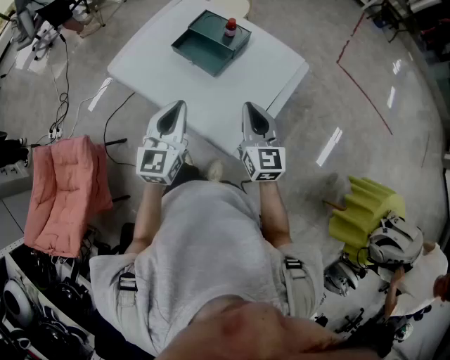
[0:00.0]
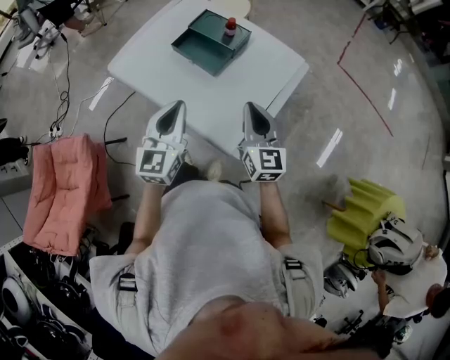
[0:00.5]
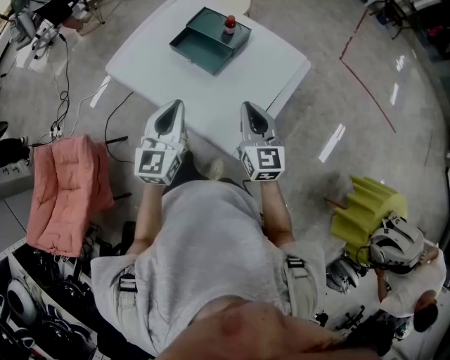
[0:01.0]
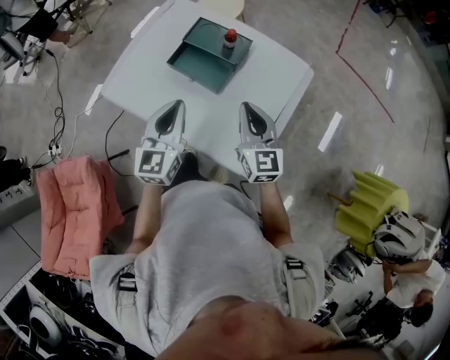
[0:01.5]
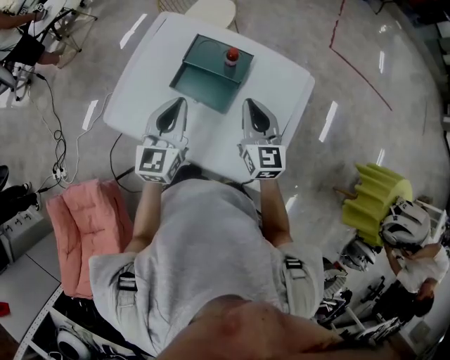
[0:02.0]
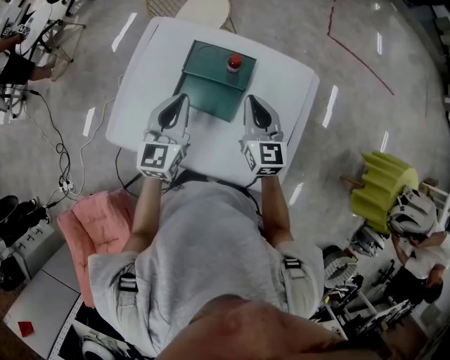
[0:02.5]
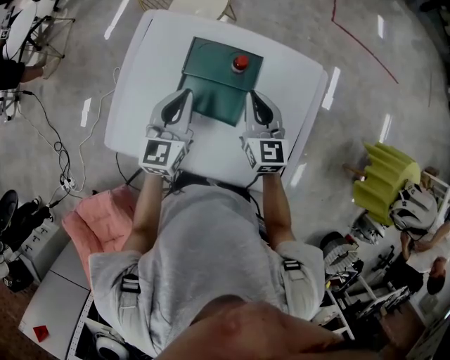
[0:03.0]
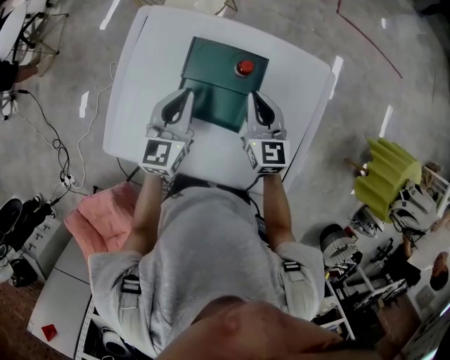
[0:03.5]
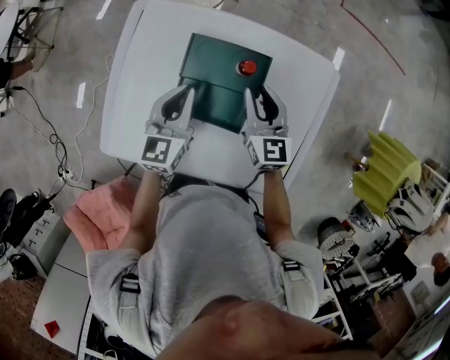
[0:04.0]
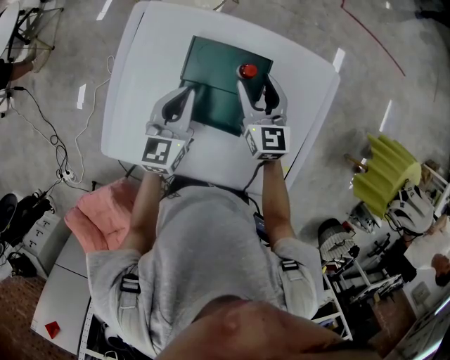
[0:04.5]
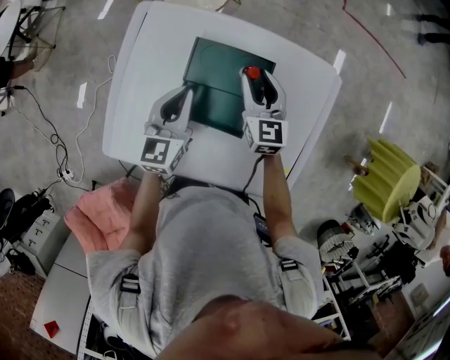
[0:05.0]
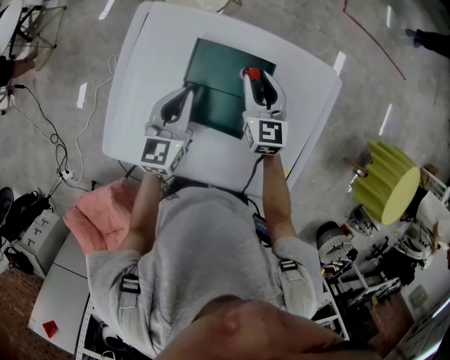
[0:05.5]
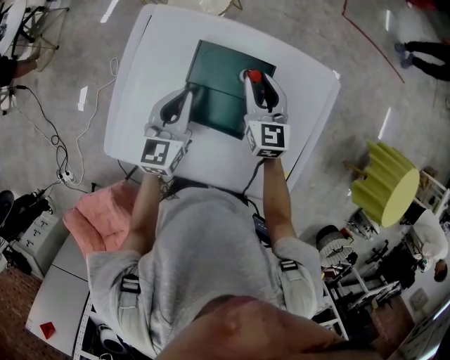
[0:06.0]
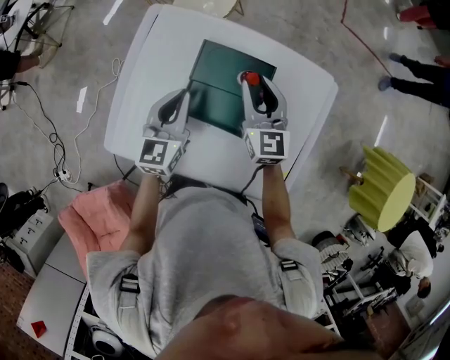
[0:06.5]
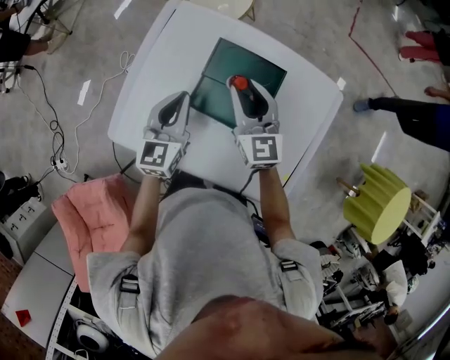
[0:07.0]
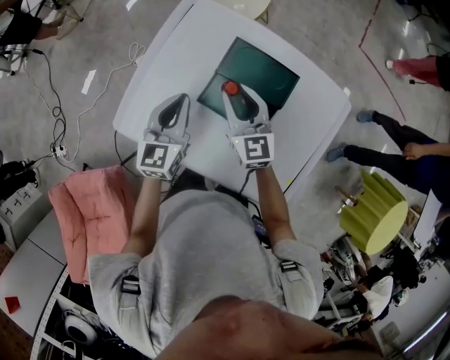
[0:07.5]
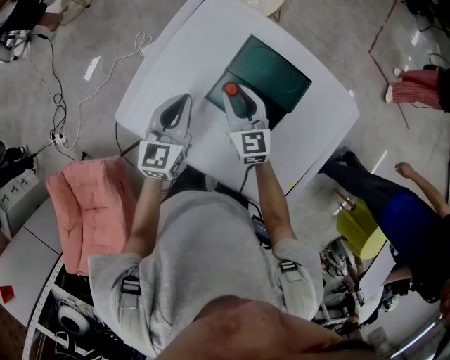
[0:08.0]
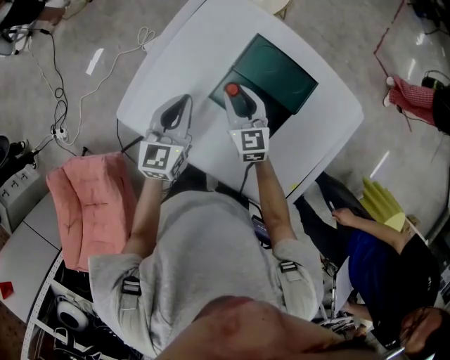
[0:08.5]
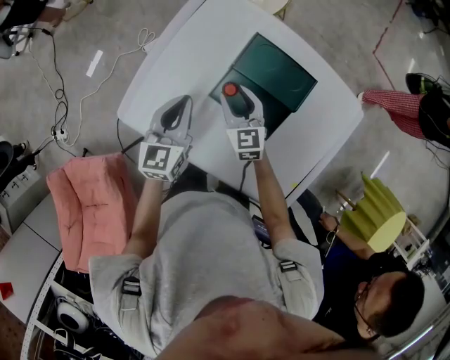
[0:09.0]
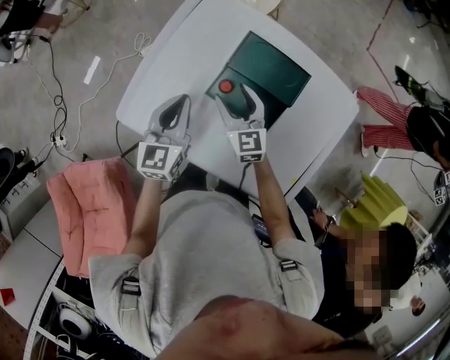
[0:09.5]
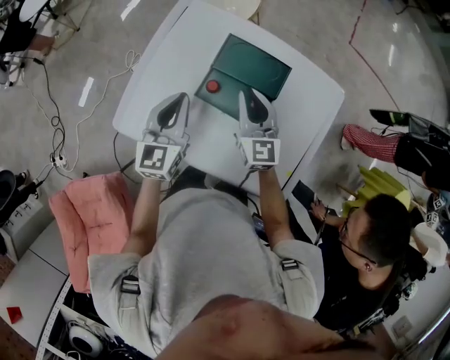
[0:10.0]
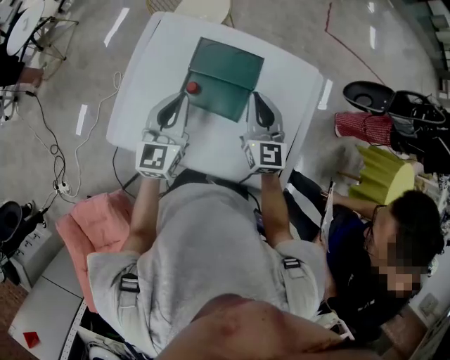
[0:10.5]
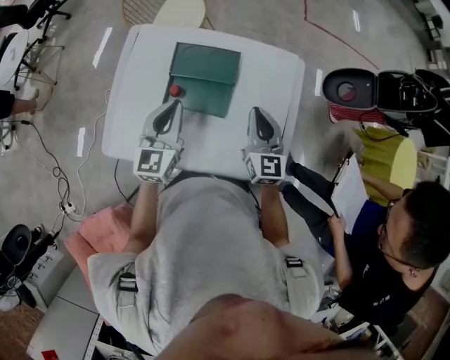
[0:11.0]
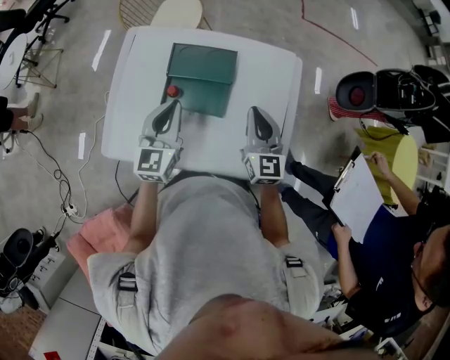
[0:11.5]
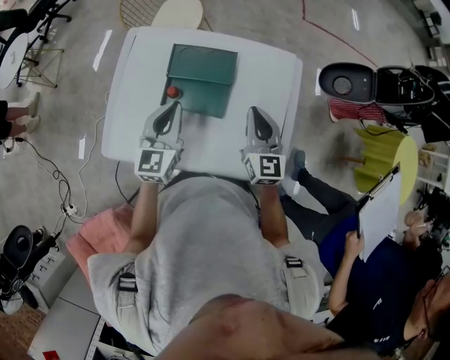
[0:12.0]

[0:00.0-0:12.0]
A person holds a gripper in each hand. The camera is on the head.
0:00.0 to 0:02.0: The two grippers go approximately 20 cm forward.
0:02.0 to 0:04.0: The grippers both shift forward and downward by some 20 cm. The right gripper opens its fingers.
0:04.0 to 0:06.0: The right gripper opens, then closes once more.
0:06.0 to 0:08.0: The two grippers go some 15 cm to the left and backward. The right gripper swivels about 30 degrees.
0:08.0 to 0:10.0: The right gripper is displaced upward and to the right by roughly 10 cm, and opens and closes again; the left gripper heads upward, covering approximately 5 cm.
0:10.0 to 0:12.0: The right gripper is displaced to the right and backward by approximately 20 cm. Meanwhile the left gripper is displaced to the right by approximately 10 cm.

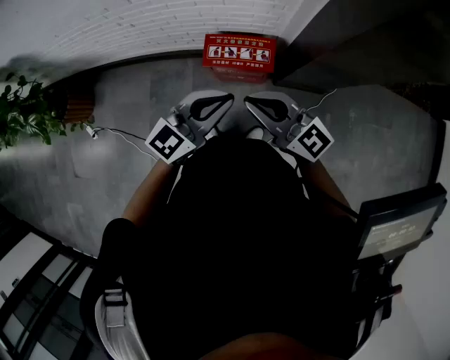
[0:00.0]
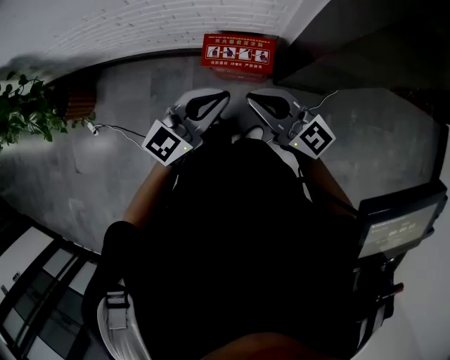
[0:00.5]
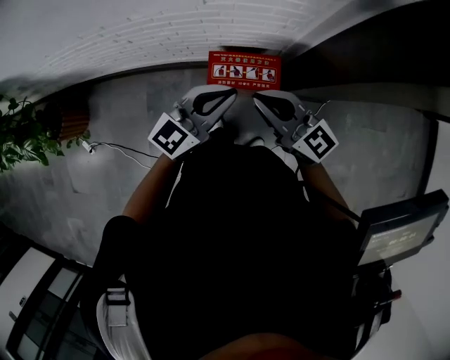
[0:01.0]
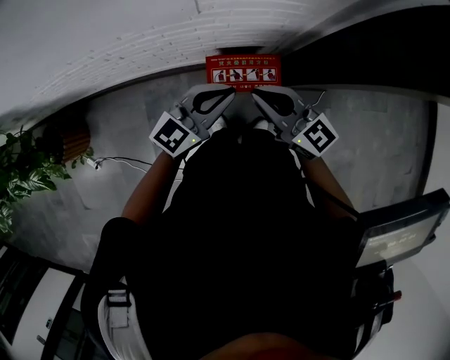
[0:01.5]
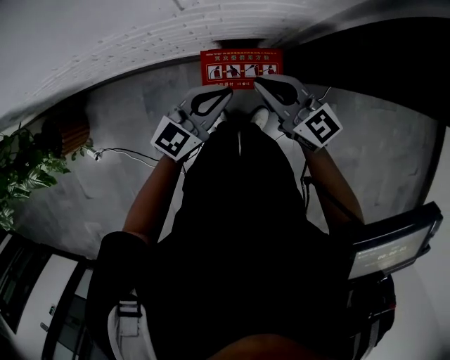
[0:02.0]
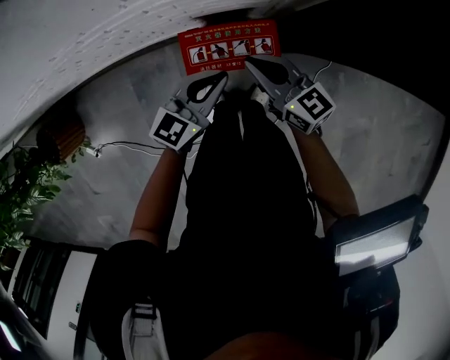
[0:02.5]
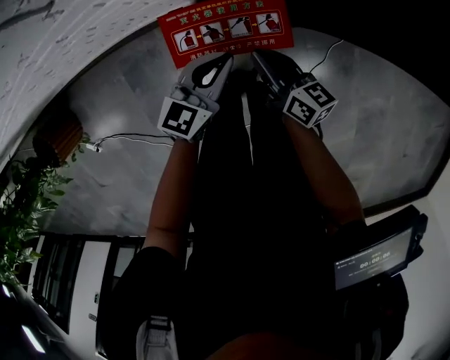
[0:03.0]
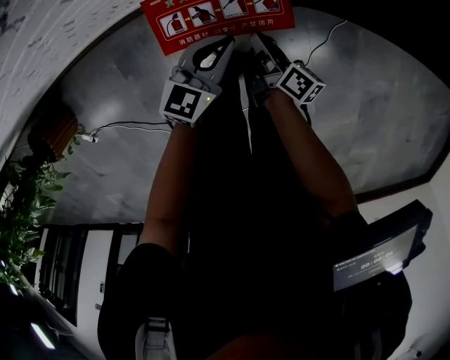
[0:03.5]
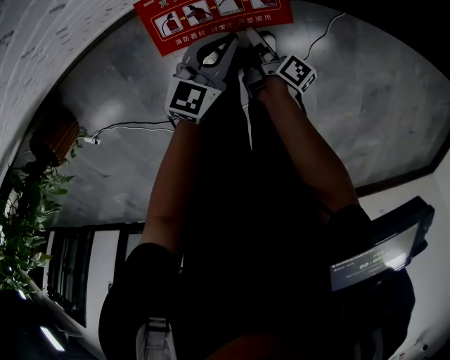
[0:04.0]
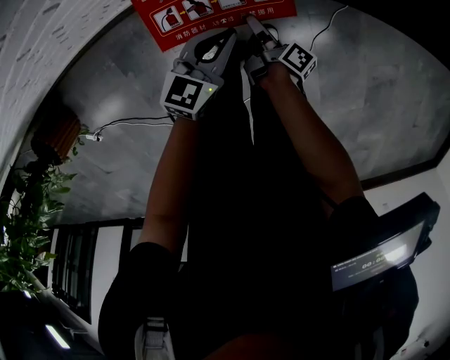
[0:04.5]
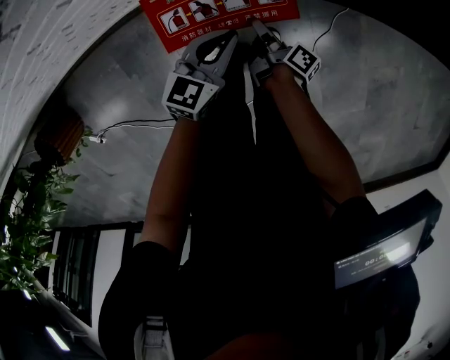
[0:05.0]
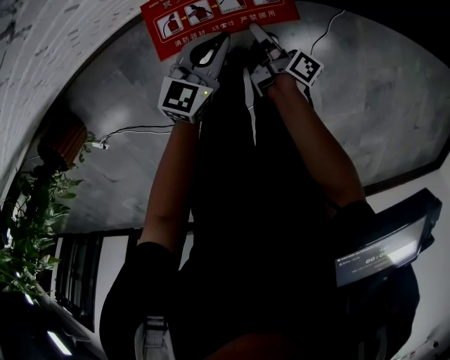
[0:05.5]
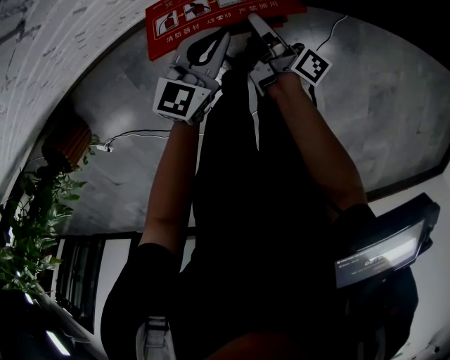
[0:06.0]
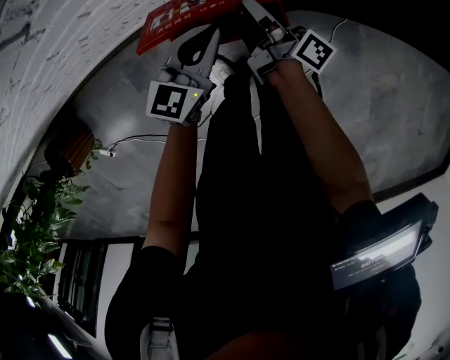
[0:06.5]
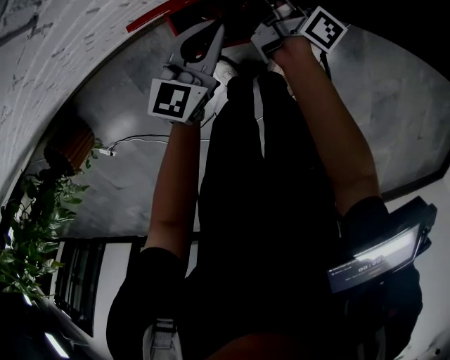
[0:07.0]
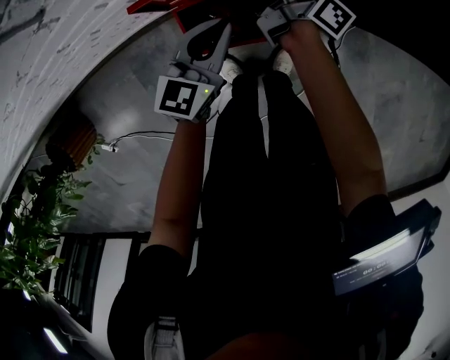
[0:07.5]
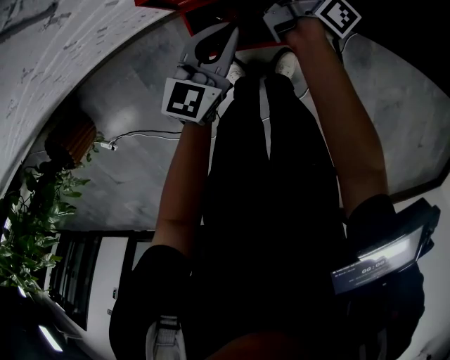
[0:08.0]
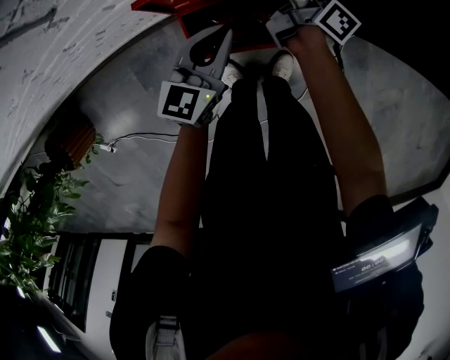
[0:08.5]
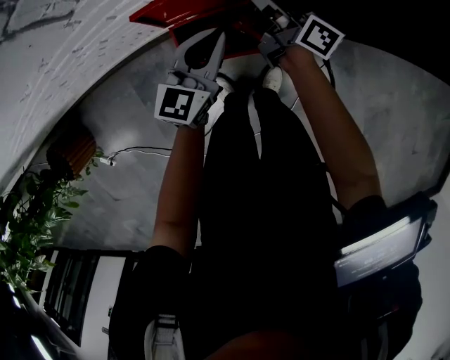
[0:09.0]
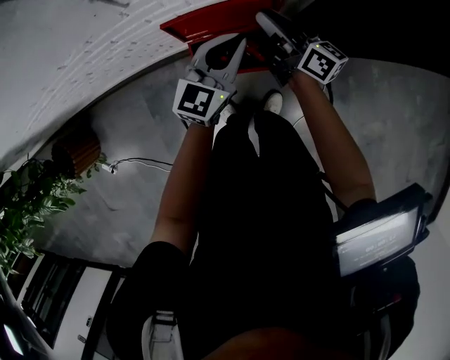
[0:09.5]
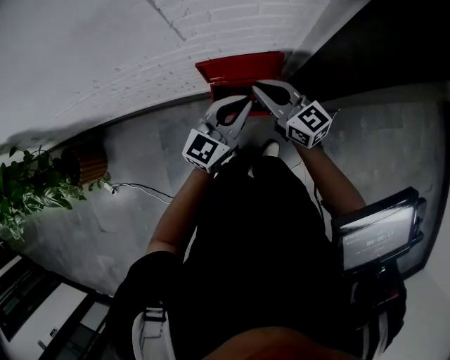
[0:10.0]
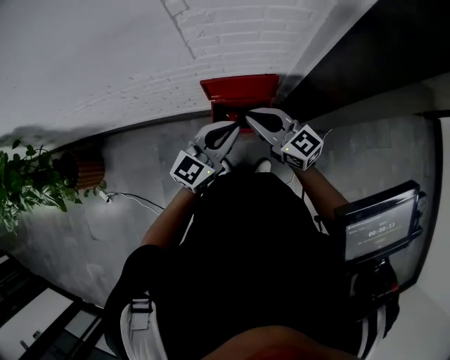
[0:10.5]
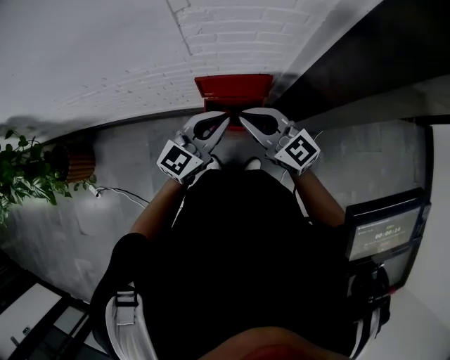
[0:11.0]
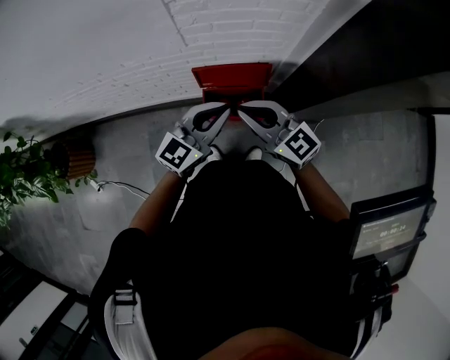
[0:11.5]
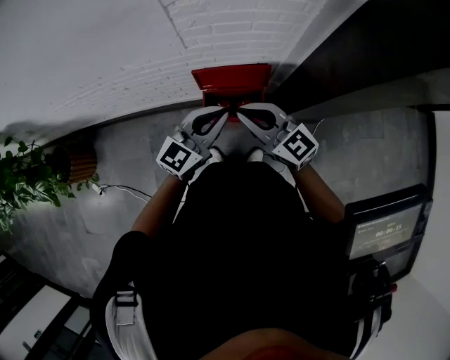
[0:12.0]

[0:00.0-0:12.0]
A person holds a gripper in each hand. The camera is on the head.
0:00.0 to 0:02.0: The grippers both shift forward and downward by some 25 cm.
0:02.0 to 0:04.0: Both grippers travel together downward, approximately 40 cm. The right gripper rotates around the line of its fingers by roughly 80 degrees, clockwise from behind, and opens up.
0:04.0 to 0:06.0: The right gripper goes about 15 cm upward and forward, while the left gripper goes some 5 cm upward.
0:06.0 to 0:08.0: The left gripper is displaced to the left by about 5 cm, while the right gripper heads forward, covering some 15 cm.
0:08.0 to 0:10.0: The right gripper is displaced upward and backward by roughly 35 cm, rotates around the line of its fingers by about 60 degrees, counterclockwise from behind, and closes. Meanwhile the left gripper is displaced upward by about 30 cm, and changes its angle by some 20 degrees.
0:10.0 to 0:12.0: The left gripper heads upward, covering roughly 5 cm. The right gripper is displaced upward and backward by roughly 15 cm.

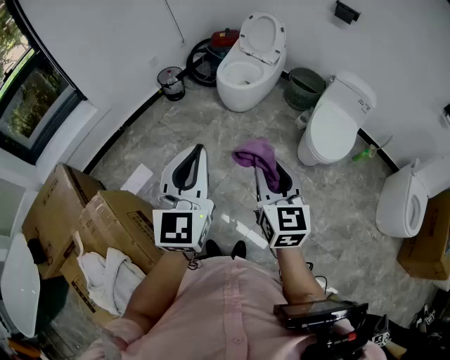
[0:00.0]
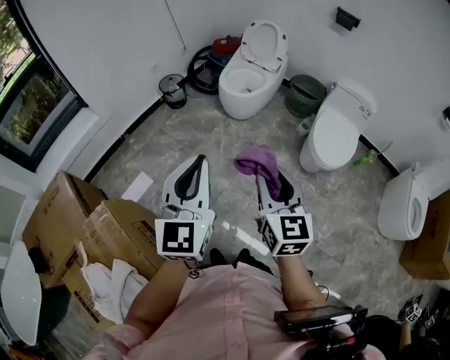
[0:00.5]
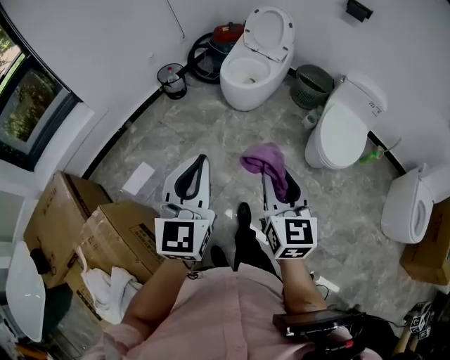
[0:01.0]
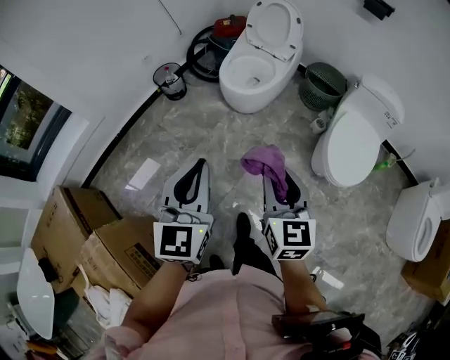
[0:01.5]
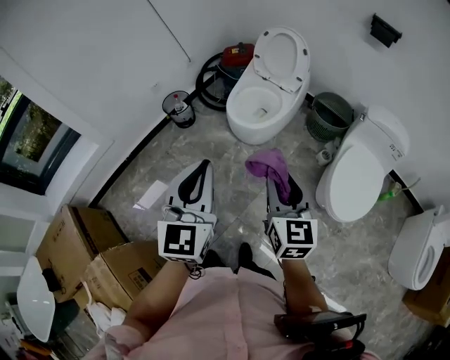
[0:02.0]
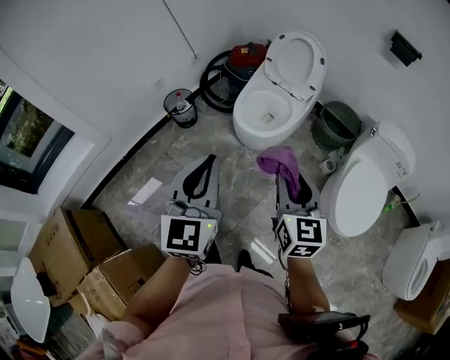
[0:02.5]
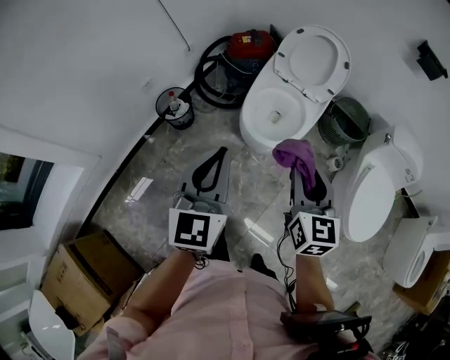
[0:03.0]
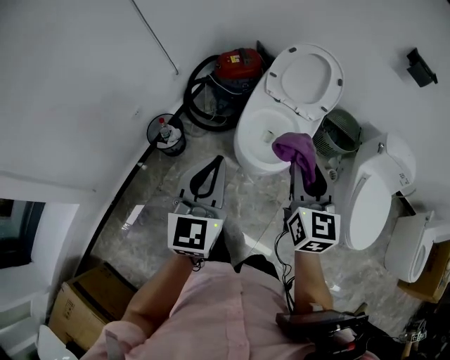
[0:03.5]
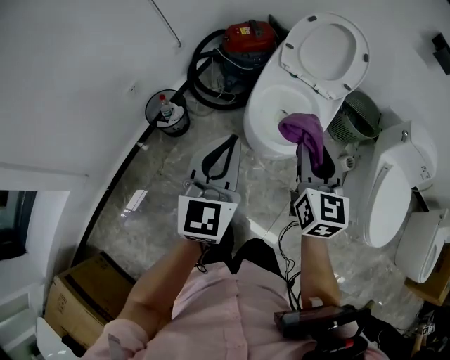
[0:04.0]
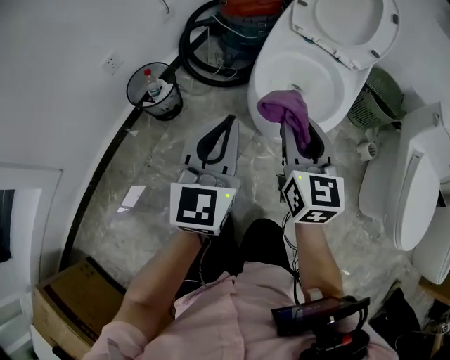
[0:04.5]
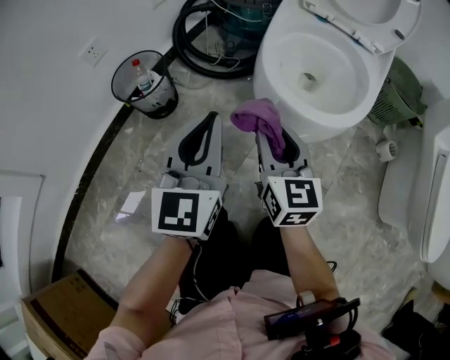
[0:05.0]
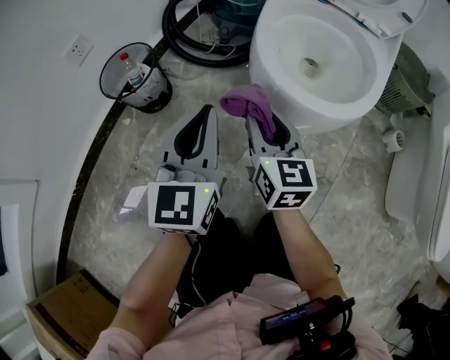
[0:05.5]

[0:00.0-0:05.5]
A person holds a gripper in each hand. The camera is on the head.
0:00.0 to 0:02.0: Both grippers move forward, approximately 35 cm.
0:02.0 to 0:03.5: The grippers both shift forward and to the left by some 40 cm.
0:03.5 to 0:05.5: Both grippers travel together downward, some 50 cm.
